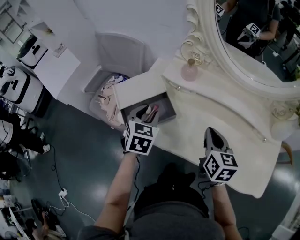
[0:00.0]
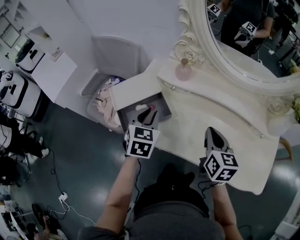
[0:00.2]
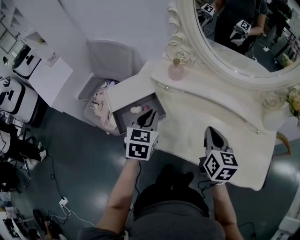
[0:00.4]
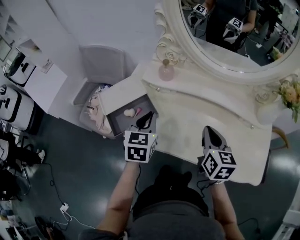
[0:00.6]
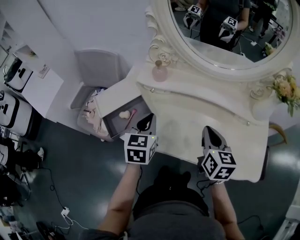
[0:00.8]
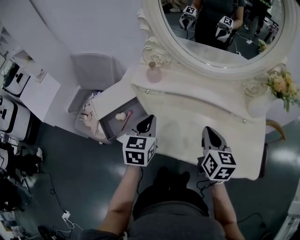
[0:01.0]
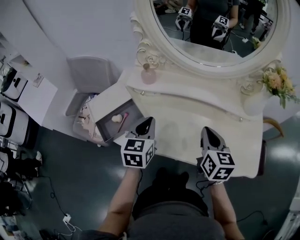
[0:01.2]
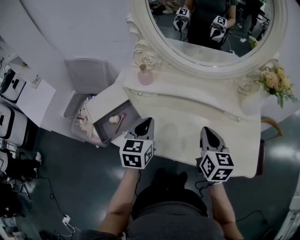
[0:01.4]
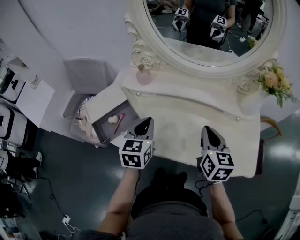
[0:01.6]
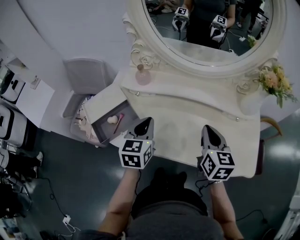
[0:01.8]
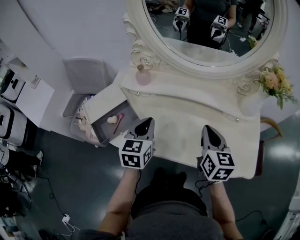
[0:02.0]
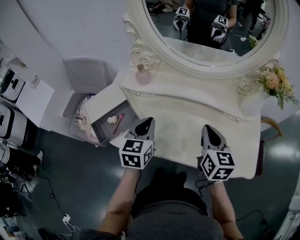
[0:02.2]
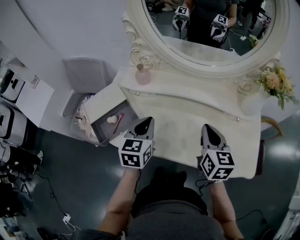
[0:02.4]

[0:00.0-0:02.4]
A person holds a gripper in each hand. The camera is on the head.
0.0 to 1.2 s: Both grippers move to the right, approximately 15 cm. The left gripper turns by approximately 20 degrees, and closes its fingers.
1.2 to 2.4 s: The grippers stay close to where they were, moving slightly.

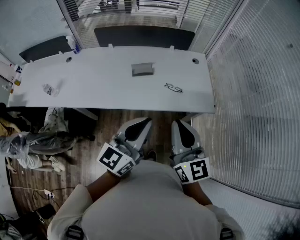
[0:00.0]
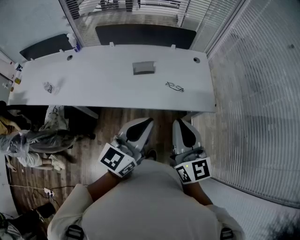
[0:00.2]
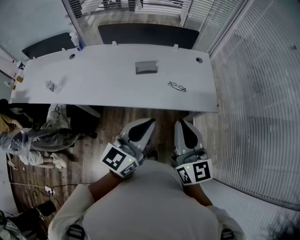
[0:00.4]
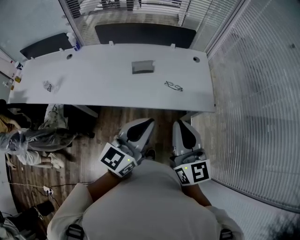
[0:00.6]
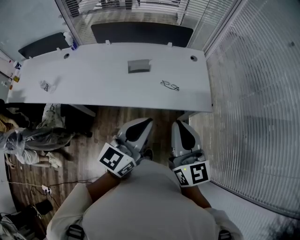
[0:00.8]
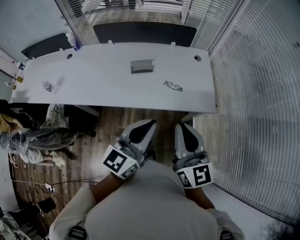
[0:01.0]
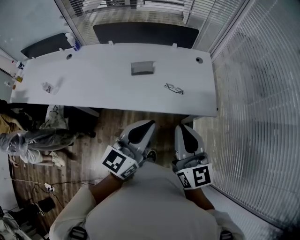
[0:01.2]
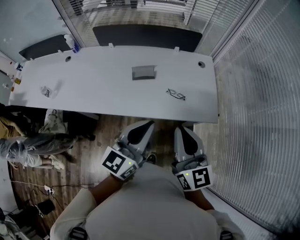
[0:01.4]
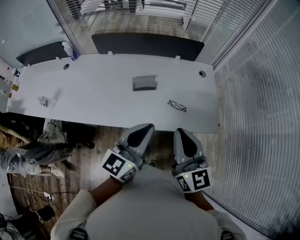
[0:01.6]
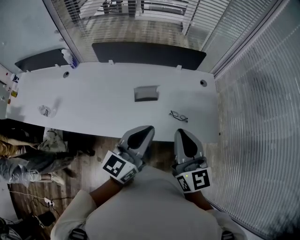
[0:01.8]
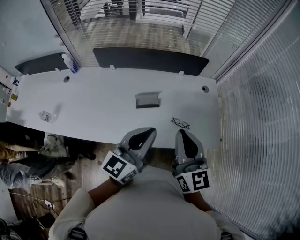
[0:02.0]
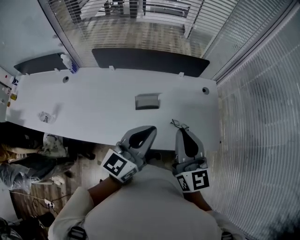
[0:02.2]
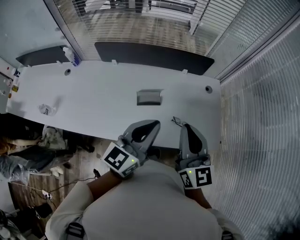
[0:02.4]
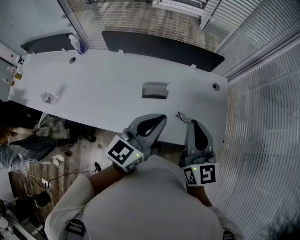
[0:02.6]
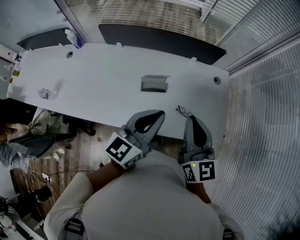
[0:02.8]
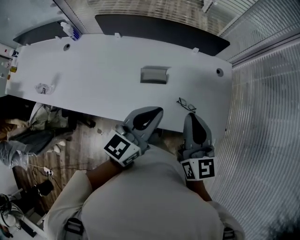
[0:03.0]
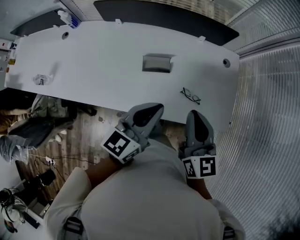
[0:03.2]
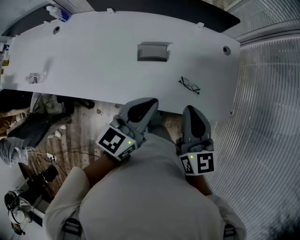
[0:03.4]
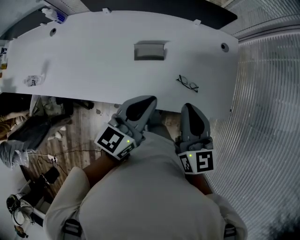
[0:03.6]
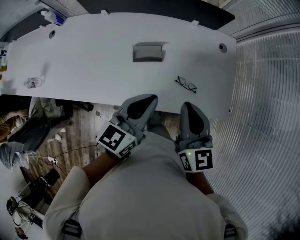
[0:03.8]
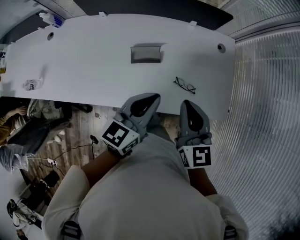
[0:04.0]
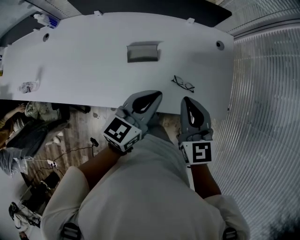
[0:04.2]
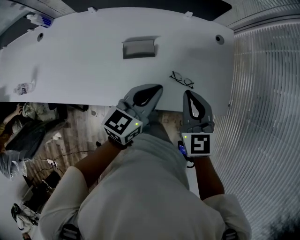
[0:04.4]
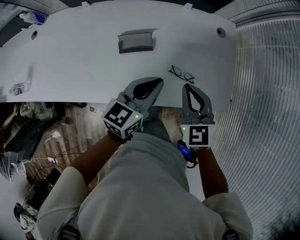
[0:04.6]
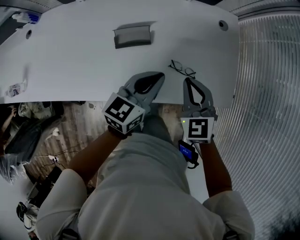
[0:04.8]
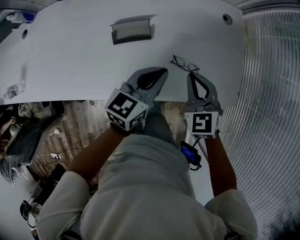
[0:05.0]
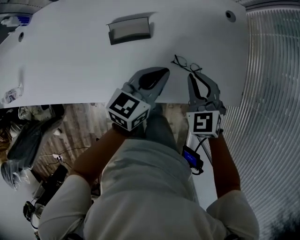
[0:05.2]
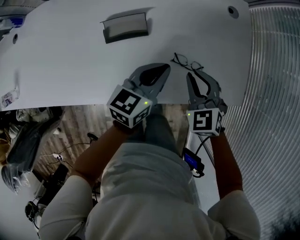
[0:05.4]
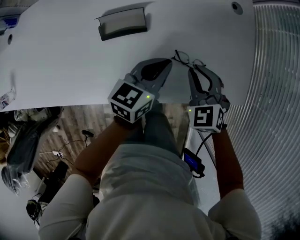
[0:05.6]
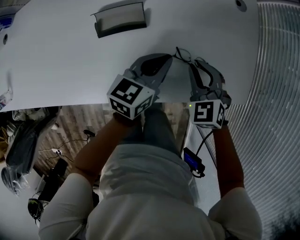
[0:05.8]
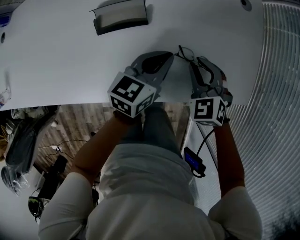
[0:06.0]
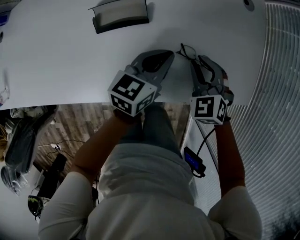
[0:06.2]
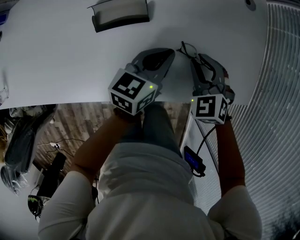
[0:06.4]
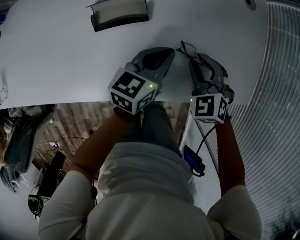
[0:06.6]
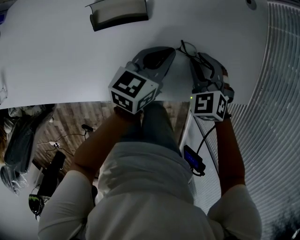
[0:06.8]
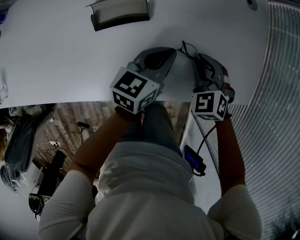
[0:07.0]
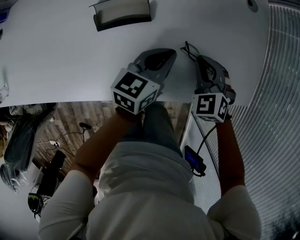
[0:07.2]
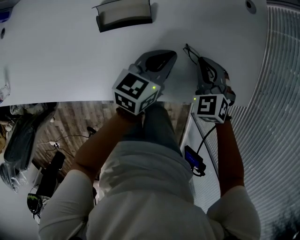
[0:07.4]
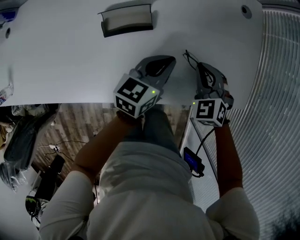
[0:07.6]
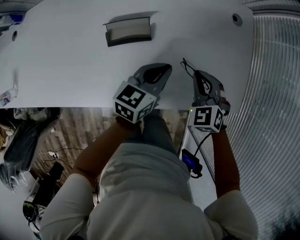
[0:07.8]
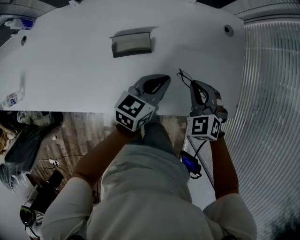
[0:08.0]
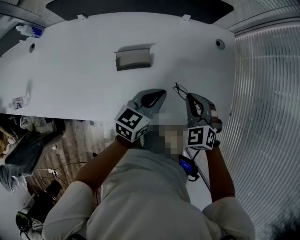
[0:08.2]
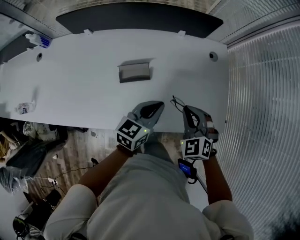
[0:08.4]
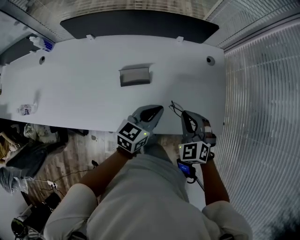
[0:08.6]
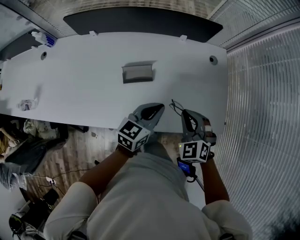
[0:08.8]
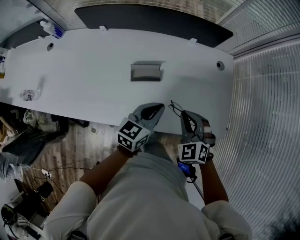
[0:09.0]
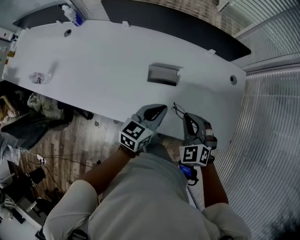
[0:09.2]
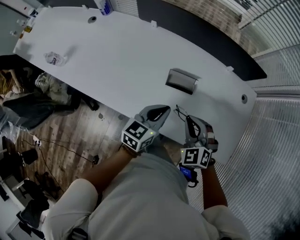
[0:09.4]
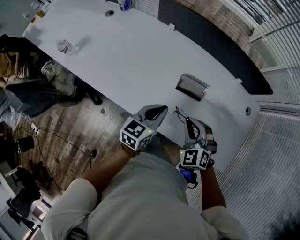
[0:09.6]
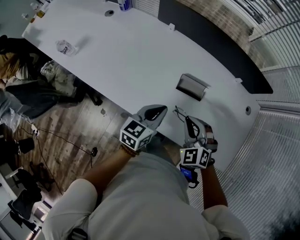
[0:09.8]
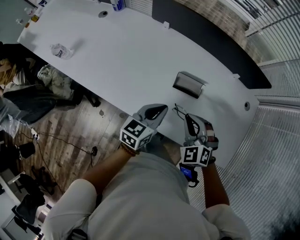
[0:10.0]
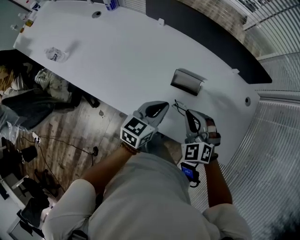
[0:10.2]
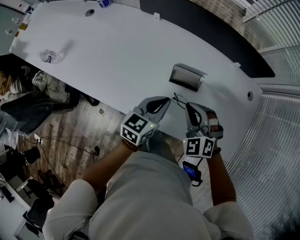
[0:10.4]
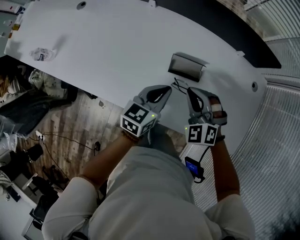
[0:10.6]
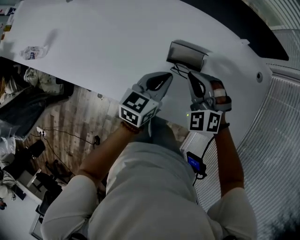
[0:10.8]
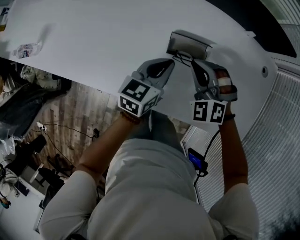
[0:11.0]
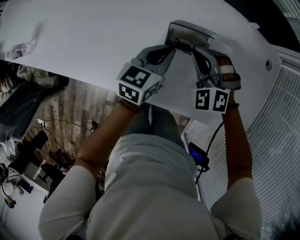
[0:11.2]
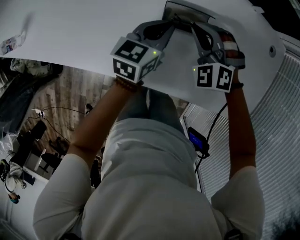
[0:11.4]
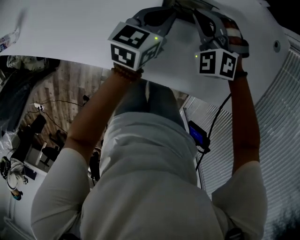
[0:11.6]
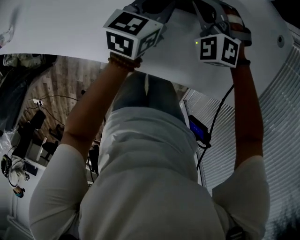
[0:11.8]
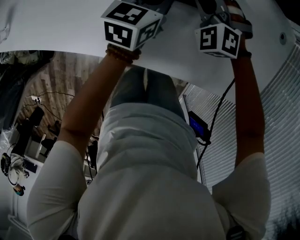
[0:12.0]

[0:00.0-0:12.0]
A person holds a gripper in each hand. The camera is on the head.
0.0 to 1.6 s: The two grippers go roughly 15 cm forward.
1.6 to 3.0 s: The two grippers go approximately 15 cm forward.
3.0 to 4.4 s: Both grippers travel together downward, roughly 10 cm. The right gripper turns by about 20 degrees.
4.4 to 6.0 s: Both grippers travel together downward, about 25 cm. The right gripper changes its angle by about 30 degrees, and opens up.
6.0 to 7.6 s: The grippers stay close to where they were, moving slightly.
7.6 to 9.0 s: Both grippers move upward, approximately 15 cm.
9.0 to 10.4 s: Both grippers travel together to the left, roughly 15 cm. The right gripper swivels approximately 20 degrees.
10.4 to 12.0 s: Both grippers travel together downward and forward, roughly 15 cm.

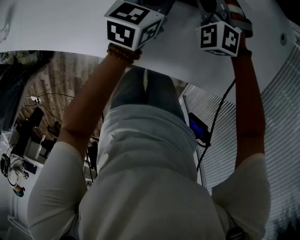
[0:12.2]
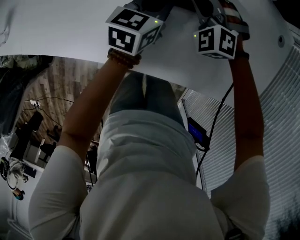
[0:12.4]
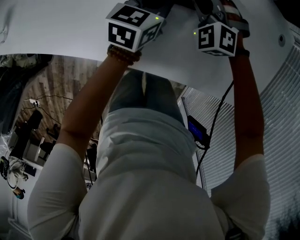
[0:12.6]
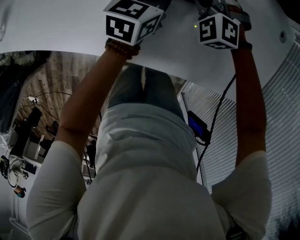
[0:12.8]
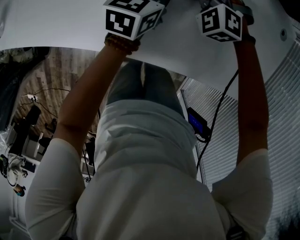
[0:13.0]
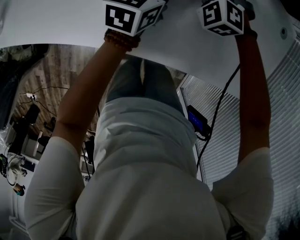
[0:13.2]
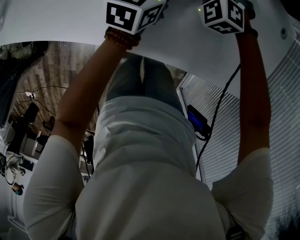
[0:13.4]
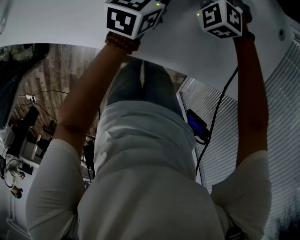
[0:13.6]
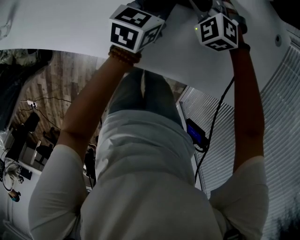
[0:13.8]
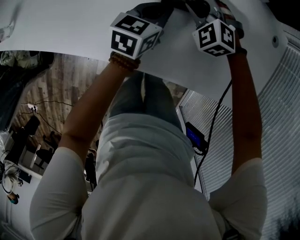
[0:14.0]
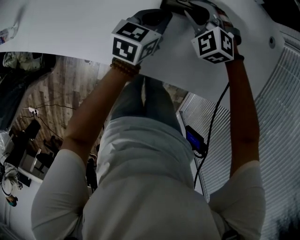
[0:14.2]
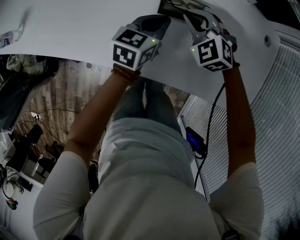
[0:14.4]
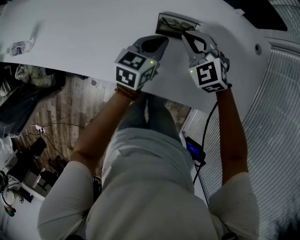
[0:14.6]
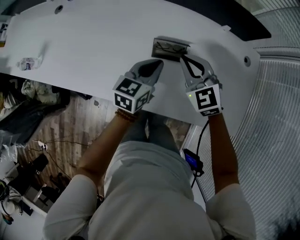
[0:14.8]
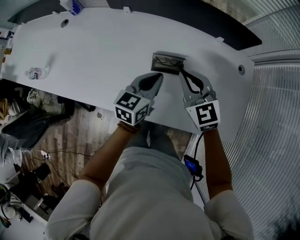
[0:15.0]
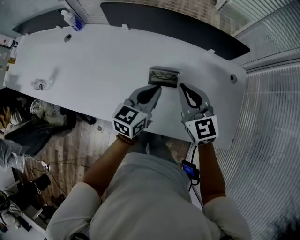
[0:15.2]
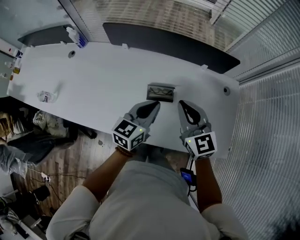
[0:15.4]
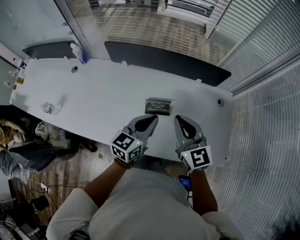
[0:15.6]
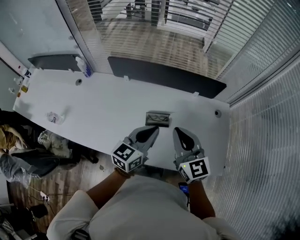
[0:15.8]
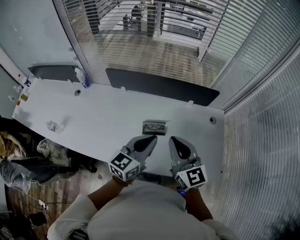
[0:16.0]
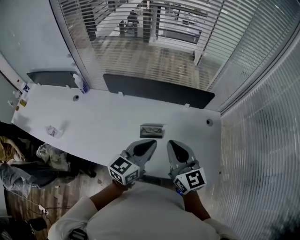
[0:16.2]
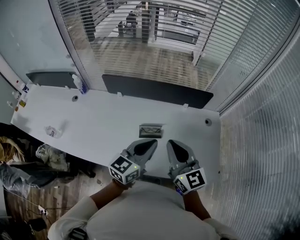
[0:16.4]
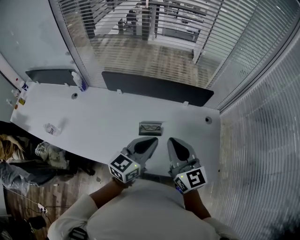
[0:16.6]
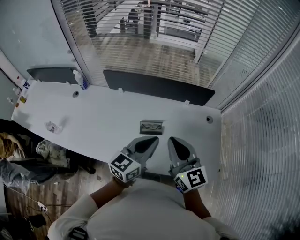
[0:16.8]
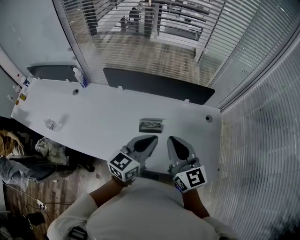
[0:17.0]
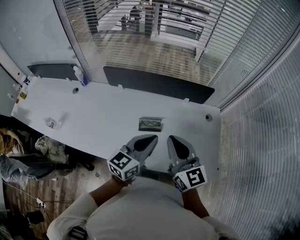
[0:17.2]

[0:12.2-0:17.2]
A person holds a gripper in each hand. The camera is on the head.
12.2 to 13.8 s: The grippers move only a little.
13.8 to 15.6 s: Both grippers move upward, some 30 cm. The right gripper angles its fingers upward, by some 40 degrees.
15.6 to 17.2 s: The left gripper goes some 10 cm upward; the right gripper shifts some 10 cm upward and backward.

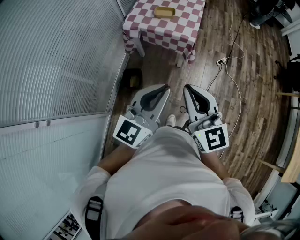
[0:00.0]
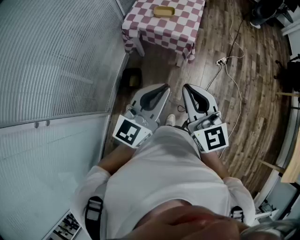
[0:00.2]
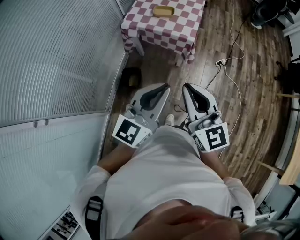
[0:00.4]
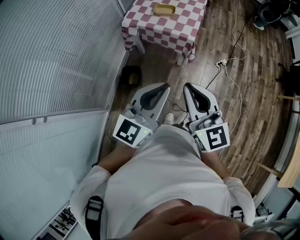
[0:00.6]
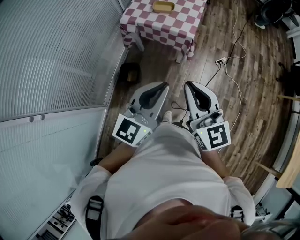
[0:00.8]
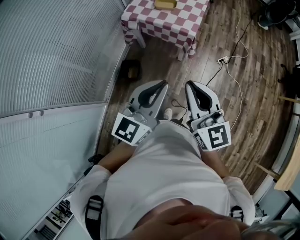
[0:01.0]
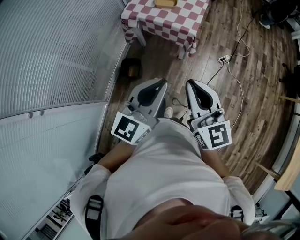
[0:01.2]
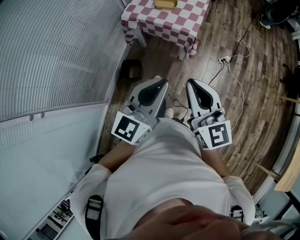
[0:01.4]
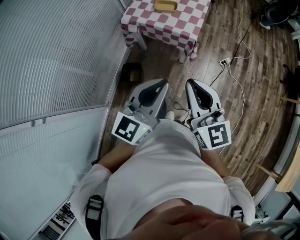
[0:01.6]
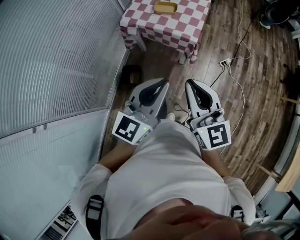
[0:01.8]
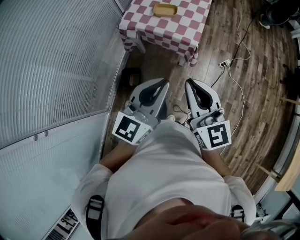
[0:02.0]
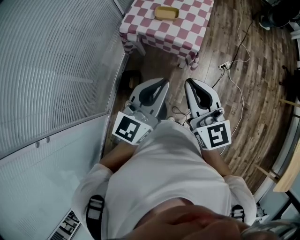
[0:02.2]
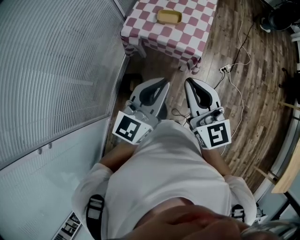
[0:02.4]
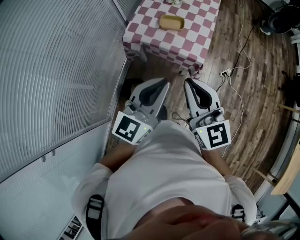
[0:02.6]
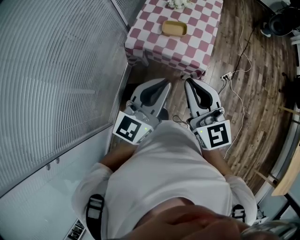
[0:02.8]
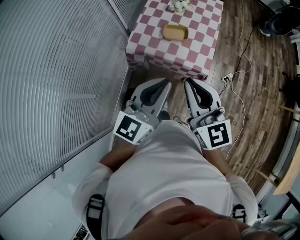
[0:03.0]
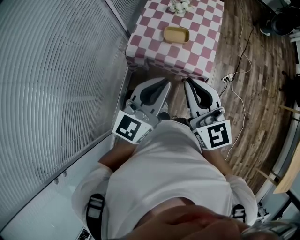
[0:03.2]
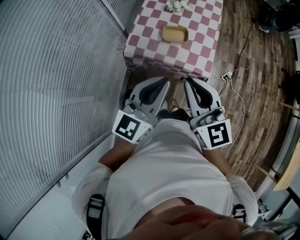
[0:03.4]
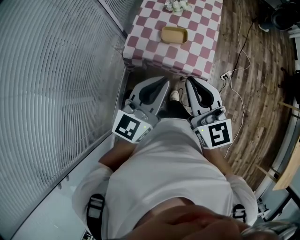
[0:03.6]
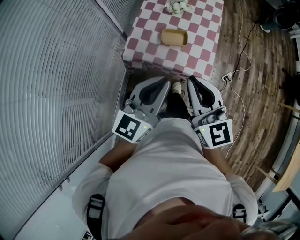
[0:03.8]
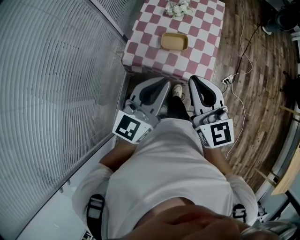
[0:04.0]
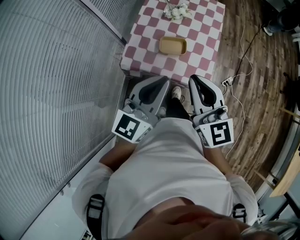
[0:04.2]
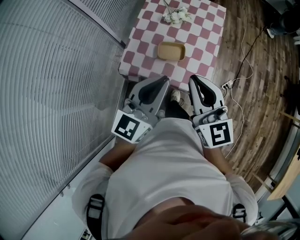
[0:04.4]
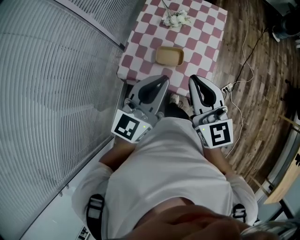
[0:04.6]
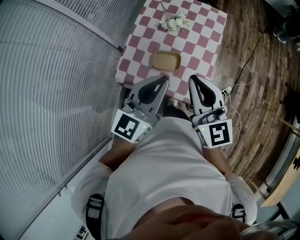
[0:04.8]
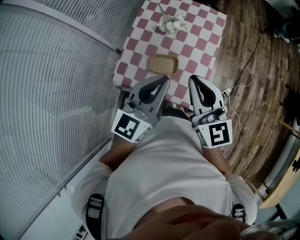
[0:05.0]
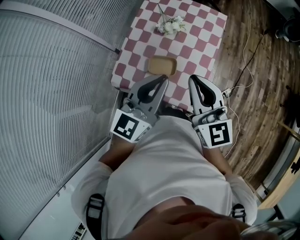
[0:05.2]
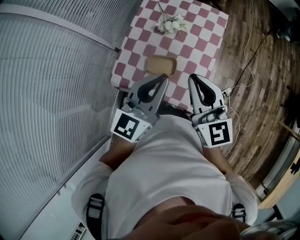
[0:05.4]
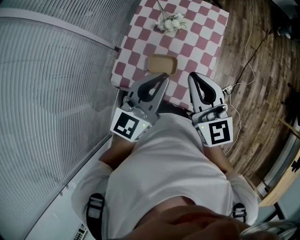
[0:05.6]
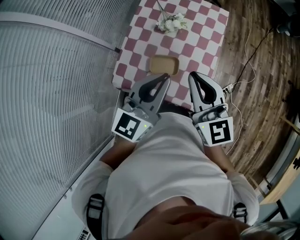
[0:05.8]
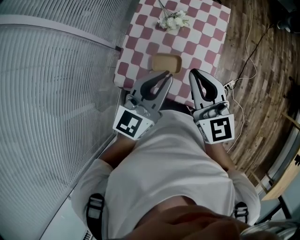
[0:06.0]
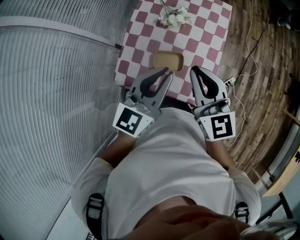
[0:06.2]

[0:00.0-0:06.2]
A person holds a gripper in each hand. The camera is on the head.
0.0 to 1.6 s: The right gripper shifts some 10 cm forward and to the right; the left gripper moves forward, approximately 5 cm.
1.6 to 3.2 s: Both grippers move forward and to the left, some 30 cm.
3.2 to 4.6 s: The two grippers go roughly 20 cm forward.
4.6 to 6.2 s: Both grippers move forward, about 10 cm.
